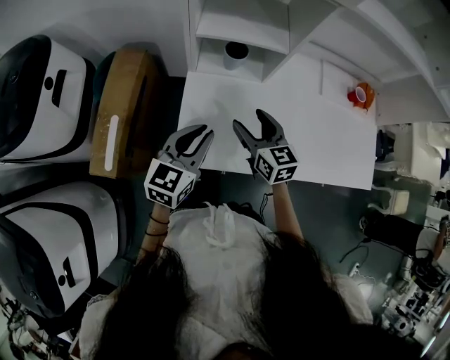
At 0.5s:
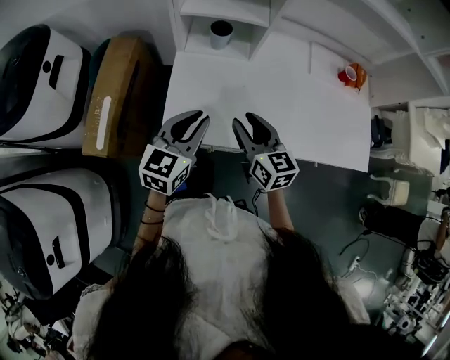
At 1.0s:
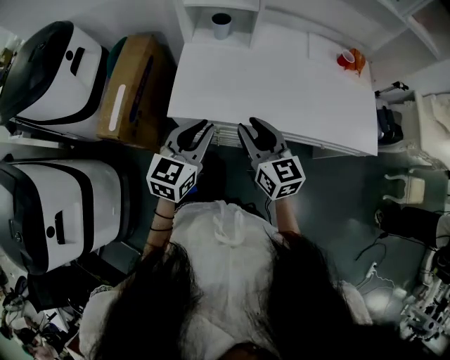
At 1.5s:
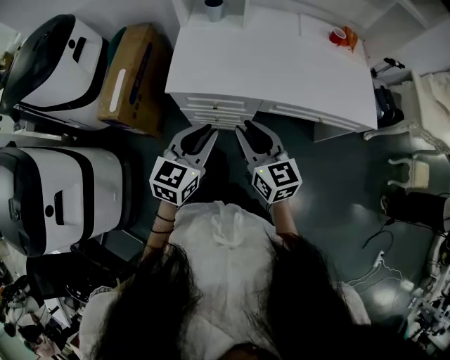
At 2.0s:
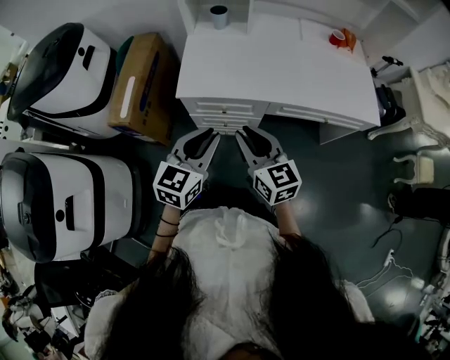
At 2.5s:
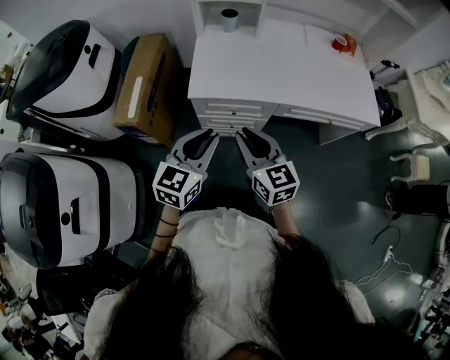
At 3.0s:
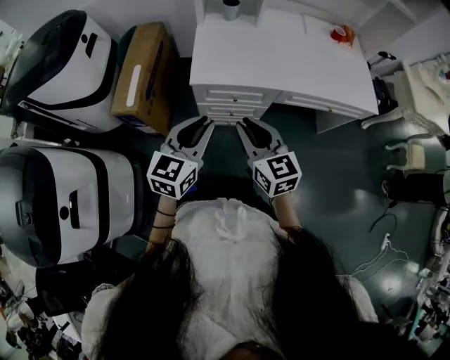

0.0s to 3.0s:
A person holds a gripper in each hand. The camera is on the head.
0.0s to 1.5s: The two grippers go about 30 cm backward. The right gripper closes.
1.5s to 3.0s: The right gripper moves to the left and backward, roughly 15 cm; the left gripper moves to the left, some 15 cm.

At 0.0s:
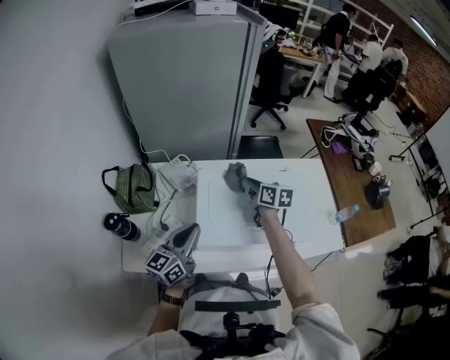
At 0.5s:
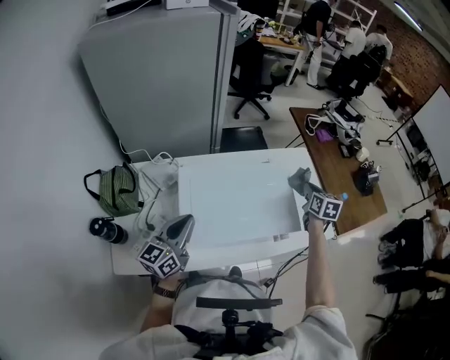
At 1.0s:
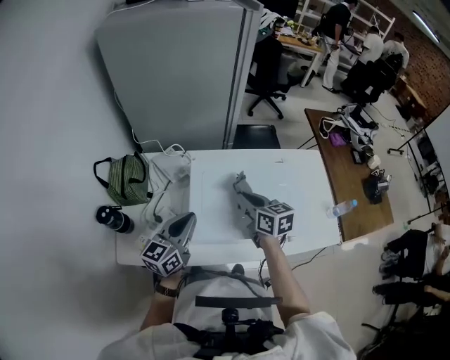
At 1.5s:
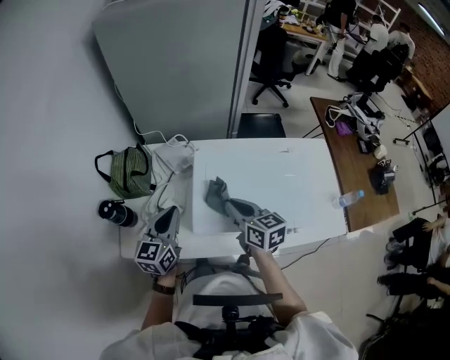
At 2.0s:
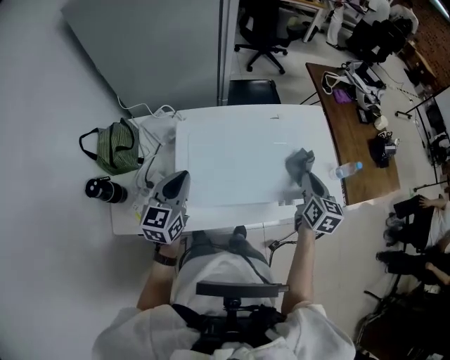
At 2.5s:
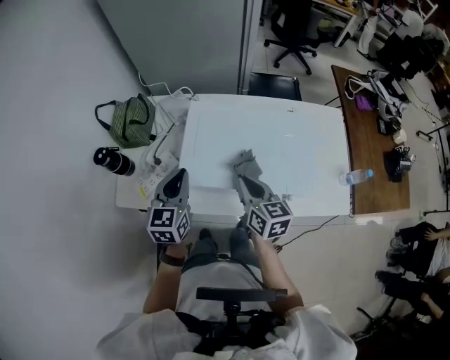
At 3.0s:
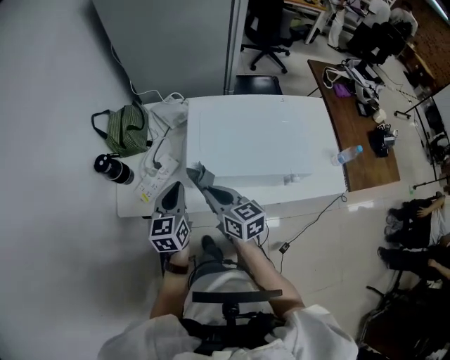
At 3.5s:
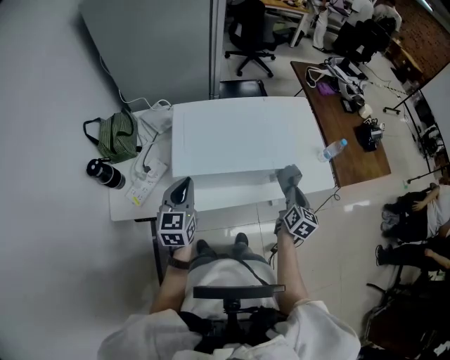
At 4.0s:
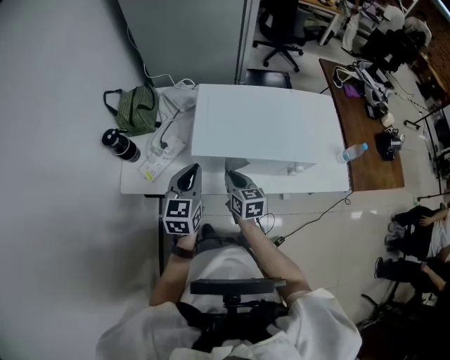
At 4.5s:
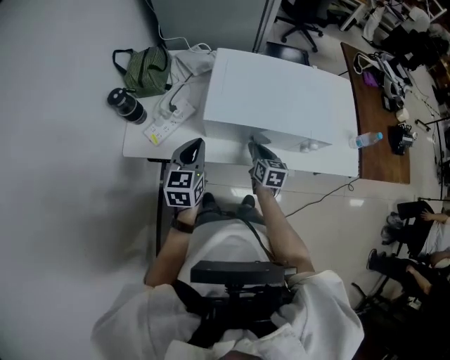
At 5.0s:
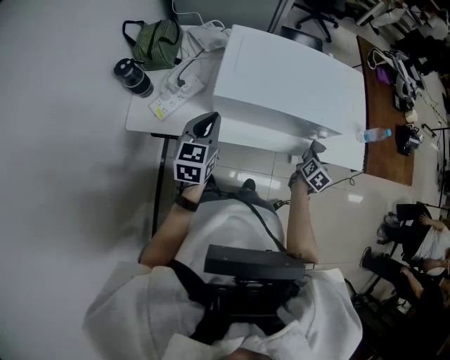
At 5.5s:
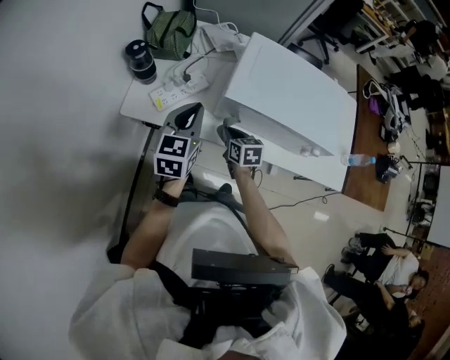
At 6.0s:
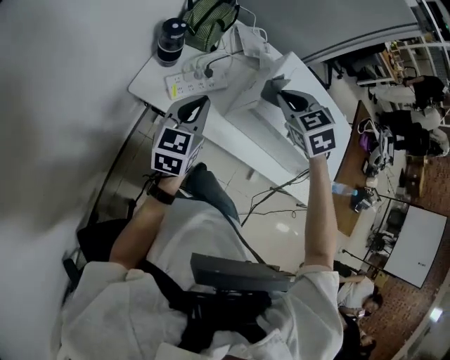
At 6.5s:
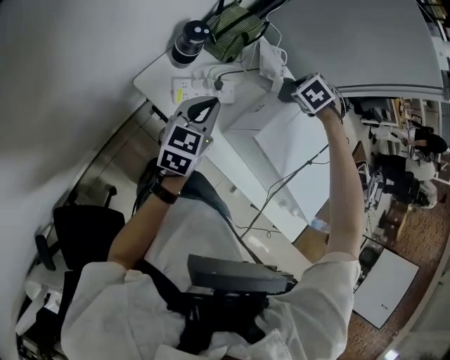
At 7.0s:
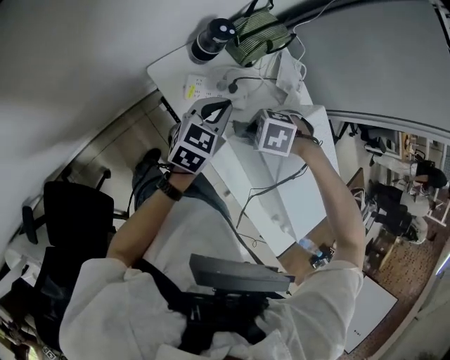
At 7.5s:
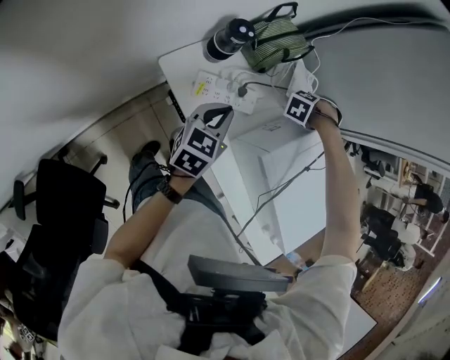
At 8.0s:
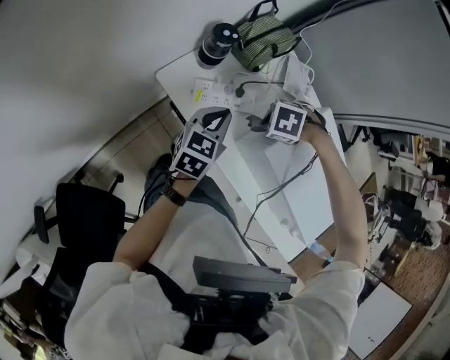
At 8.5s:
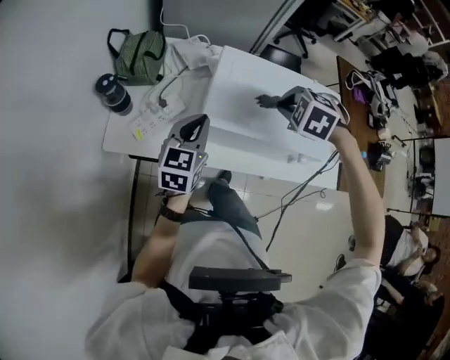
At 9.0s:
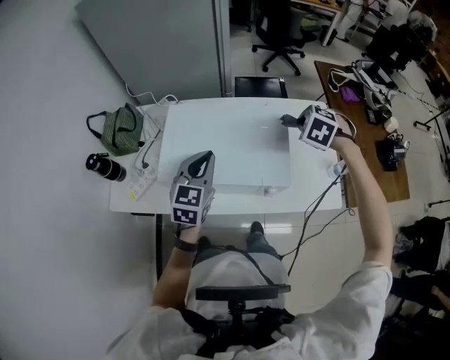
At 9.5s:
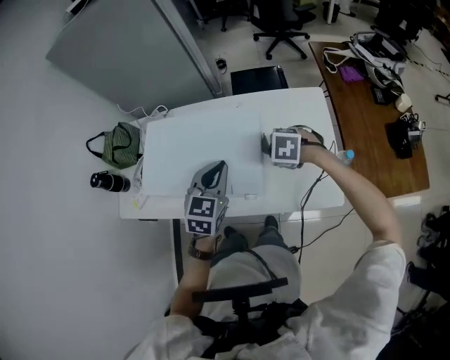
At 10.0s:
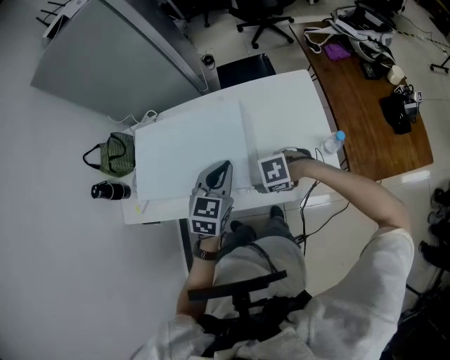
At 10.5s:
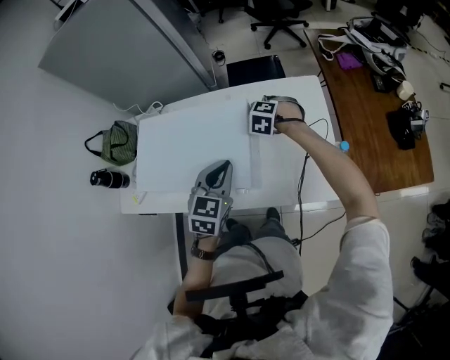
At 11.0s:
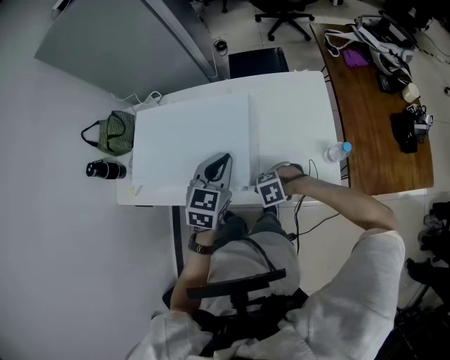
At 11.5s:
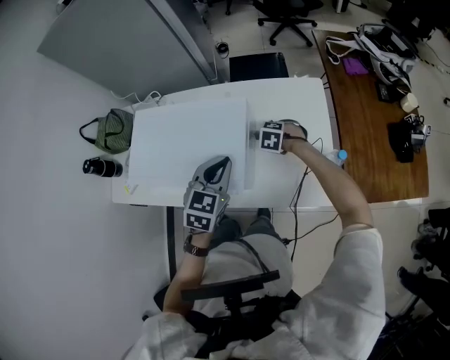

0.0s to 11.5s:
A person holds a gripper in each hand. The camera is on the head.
0.0s to 2.0s: The right gripper shifts by approximately 30 cm, and swivels roughly 30 degrees; the left gripper shifts by approximately 10 cm, and turns by approximately 20 degrees.
2.0s to 4.0s: The right gripper shifts by roughly 35 cm, and turns by some 30 degrees. Meanwhile the left gripper changes place by approximately 20 cm.
4.0s to 6.0s: The right gripper shifts by some 25 cm, and twists approximately 60 degrees counterclockwise, seen from behind. The left gripper shifts by some 25 cm.
6.0s to 7.5s: The right gripper moves roughly 30 cm, and swivels approximately 80 degrees. The left gripper shifts roughly 10 cm downward, and rotates some 20 degrees.
7.5s to 9.5s: Both grippers are carried approximately 70 cm. The left gripper turns by about 50 degrees; the right gripper swivels about 70 degrees.
9.5s to 11.5s: The left gripper shifts by roughly 10 cm. Meanwhile the right gripper shifts roughly 15 cm downward.

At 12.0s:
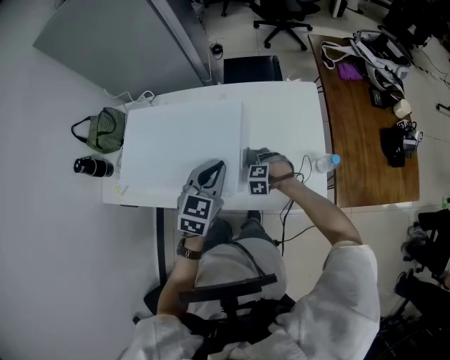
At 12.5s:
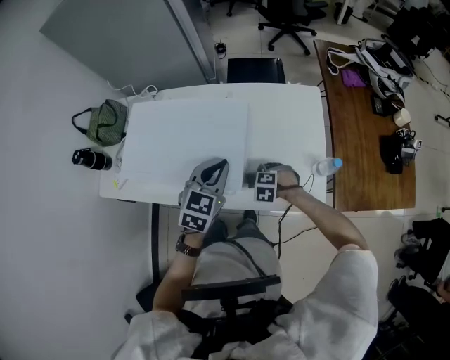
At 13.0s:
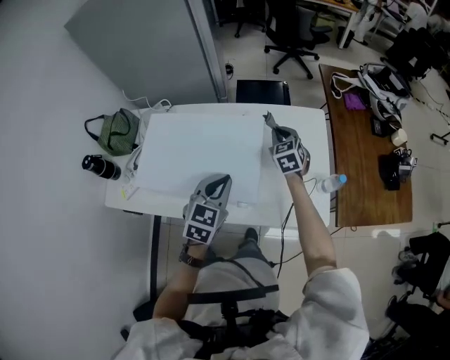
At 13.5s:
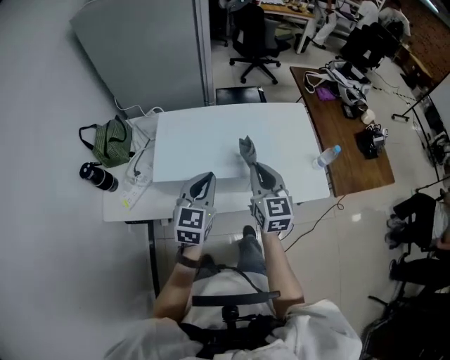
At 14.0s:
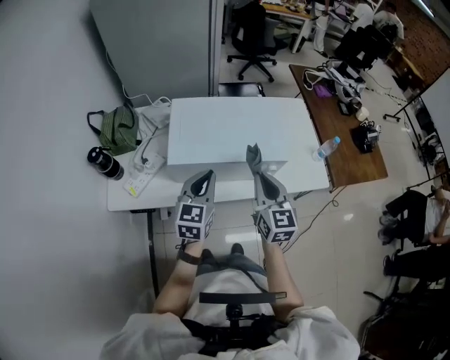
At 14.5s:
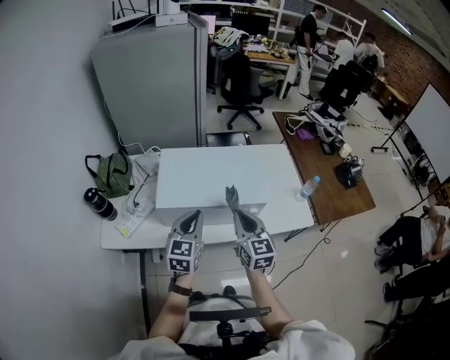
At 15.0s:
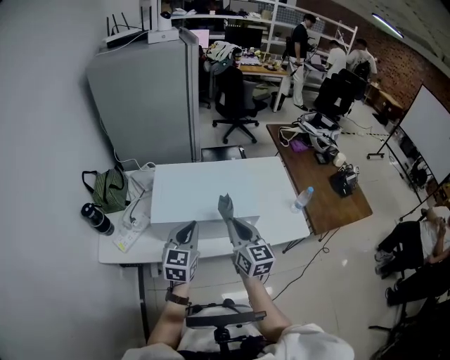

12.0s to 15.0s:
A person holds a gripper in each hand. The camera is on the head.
12.0s to 13.5s: The right gripper heads upward, covering approximately 35 cm, and tilts its fingers about 60 degrees upward; the left gripper shifts by approximately 35 cm.
13.5s to 15.0s: The grippers both shift backward and upward by some 10 cm.

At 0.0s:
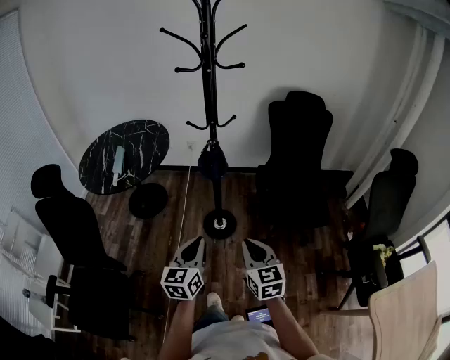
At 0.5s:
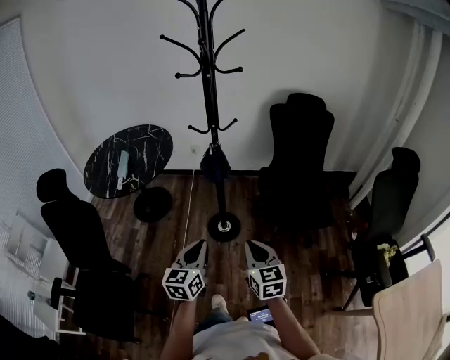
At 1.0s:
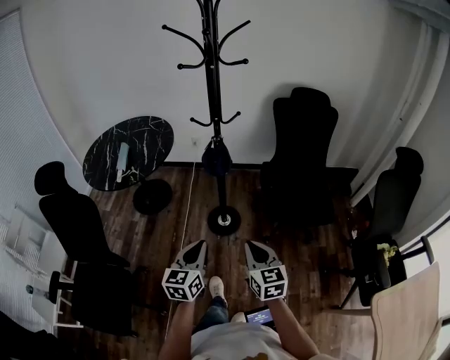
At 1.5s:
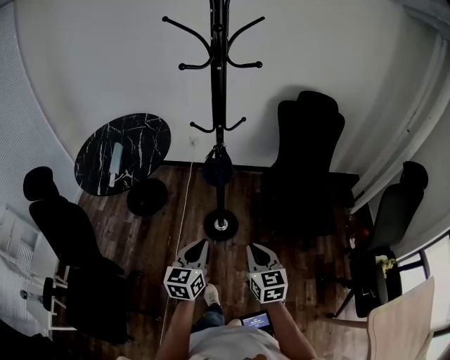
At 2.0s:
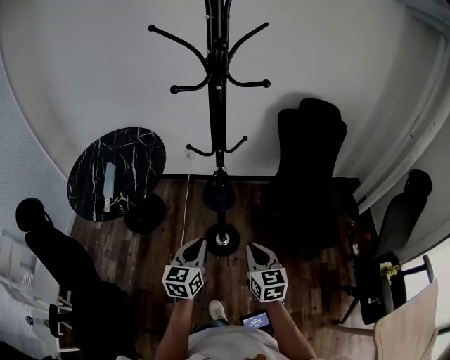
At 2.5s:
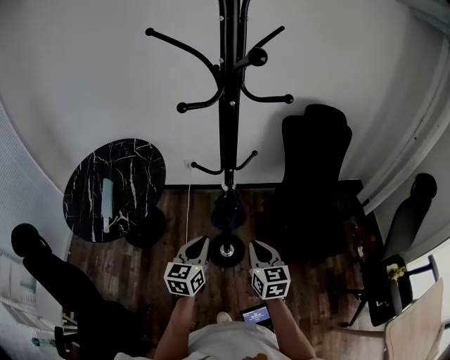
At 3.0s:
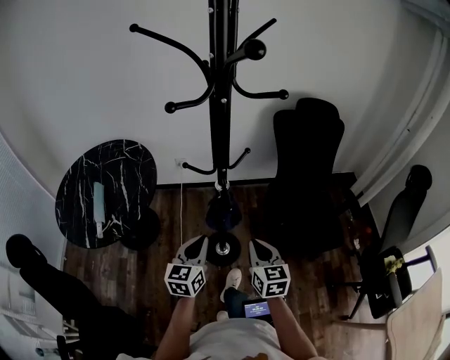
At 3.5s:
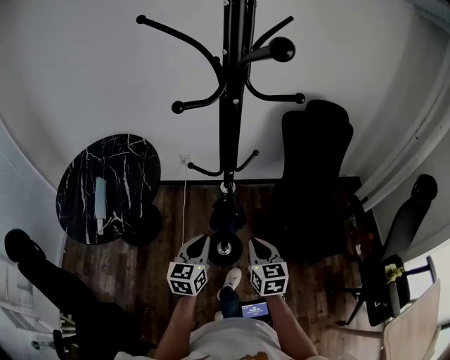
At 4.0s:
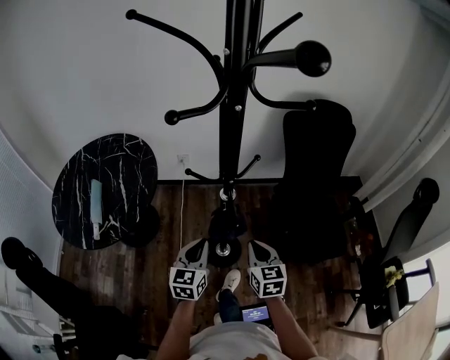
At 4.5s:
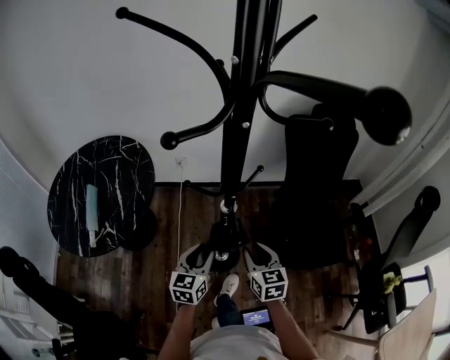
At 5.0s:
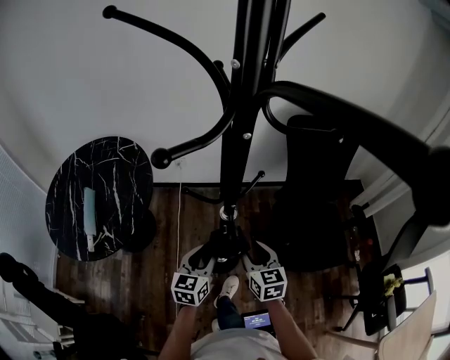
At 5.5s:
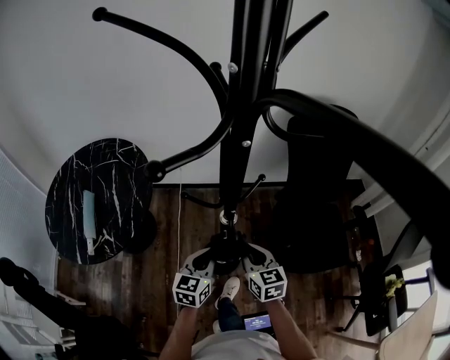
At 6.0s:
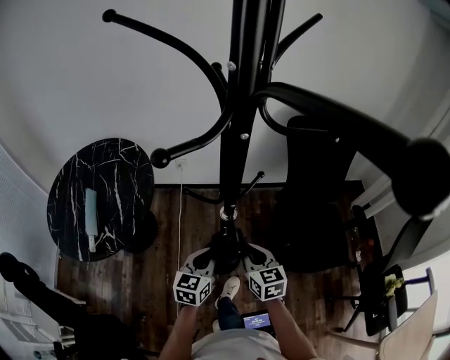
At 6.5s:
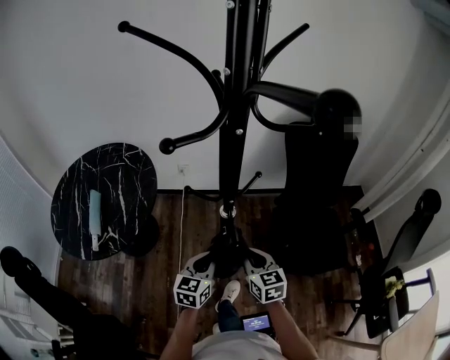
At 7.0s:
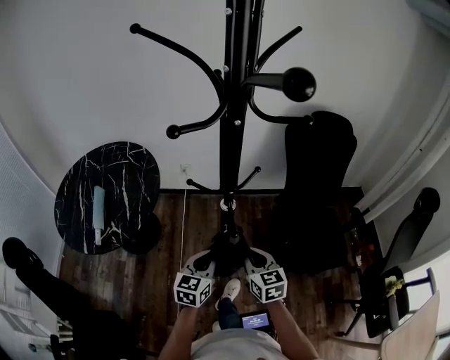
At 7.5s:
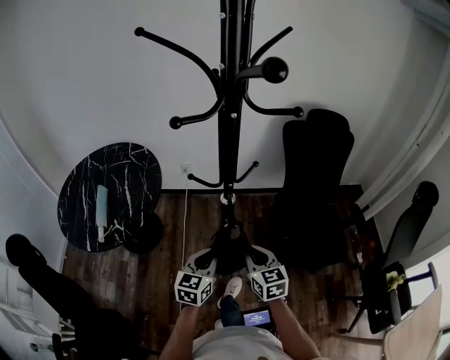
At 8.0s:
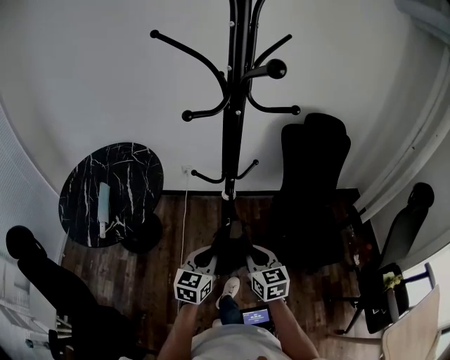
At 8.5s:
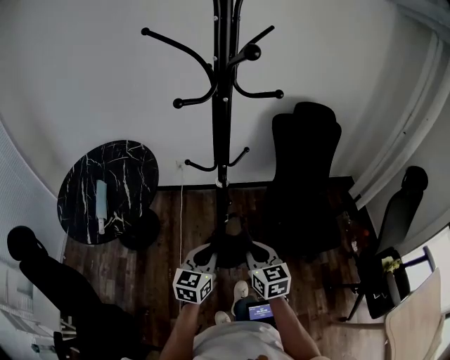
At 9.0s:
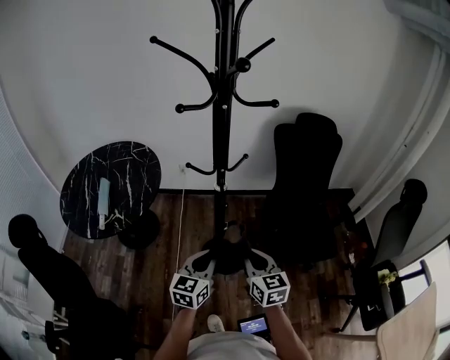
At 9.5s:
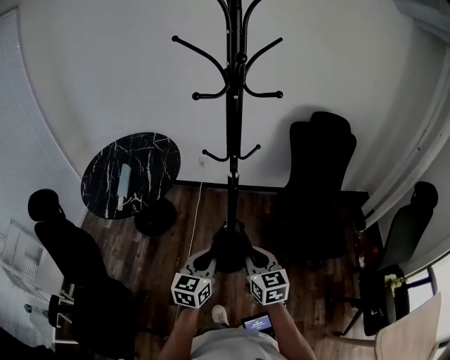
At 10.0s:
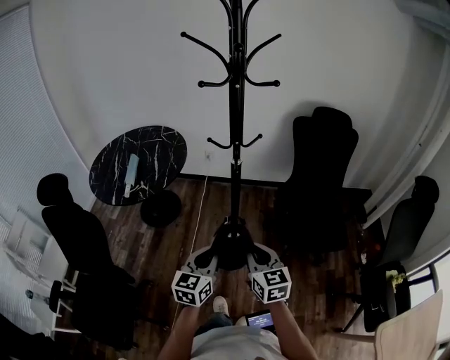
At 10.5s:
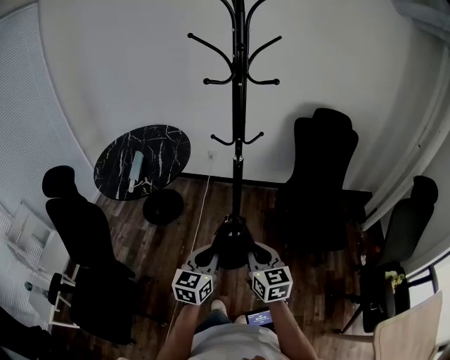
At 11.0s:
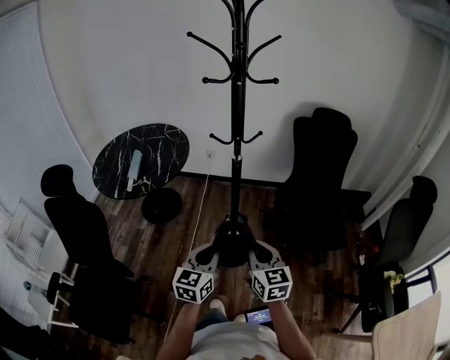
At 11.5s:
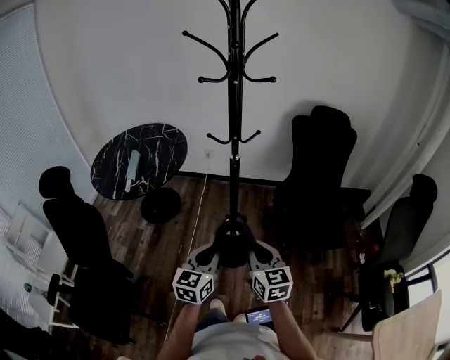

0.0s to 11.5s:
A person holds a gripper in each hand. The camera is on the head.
0.0s to 2.0s: The two grippers go approximately 20 cm forward.
2.0s to 4.0s: Both grippers move forward, about 15 cm.
4.0s to 6.0s: The left gripper ends up approximately 5 cm from where it was, and opens and closes again; the right gripper travels forward by some 5 cm, and opens and closes again.
6.0s to 7.5s: The two grippers go some 10 cm backward.
7.5s to 9.5s: The grippers both shift backward by approximately 15 cm.
9.5s to 11.5s: Both grippers move backward, some 10 cm.
